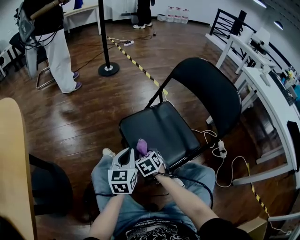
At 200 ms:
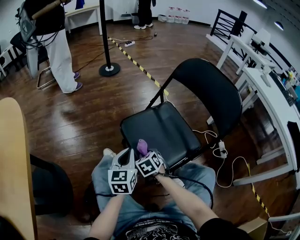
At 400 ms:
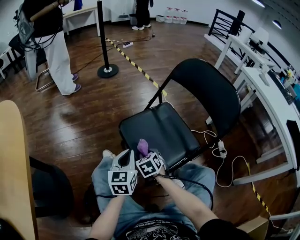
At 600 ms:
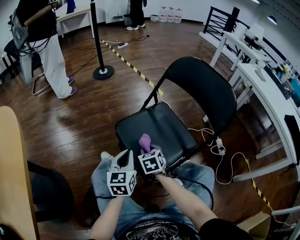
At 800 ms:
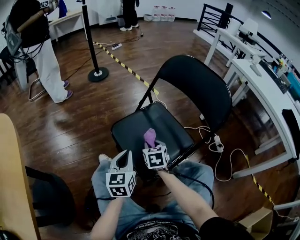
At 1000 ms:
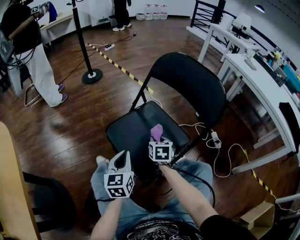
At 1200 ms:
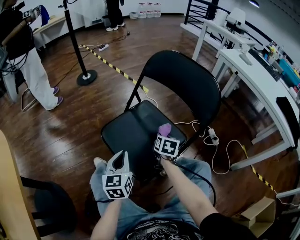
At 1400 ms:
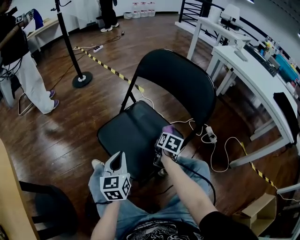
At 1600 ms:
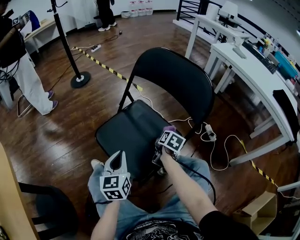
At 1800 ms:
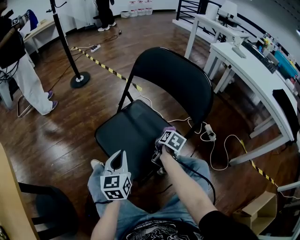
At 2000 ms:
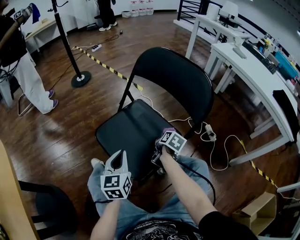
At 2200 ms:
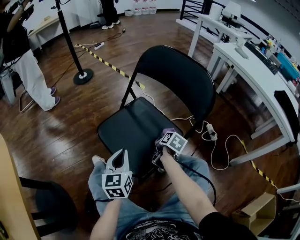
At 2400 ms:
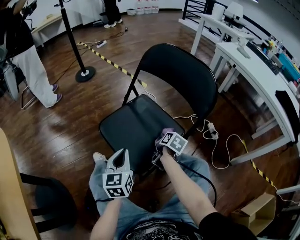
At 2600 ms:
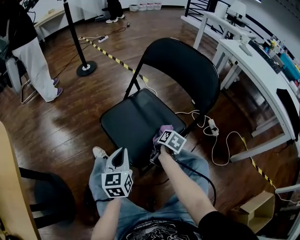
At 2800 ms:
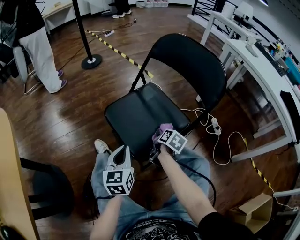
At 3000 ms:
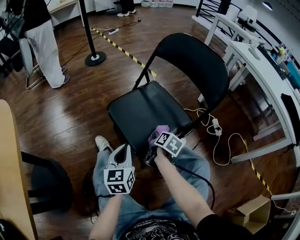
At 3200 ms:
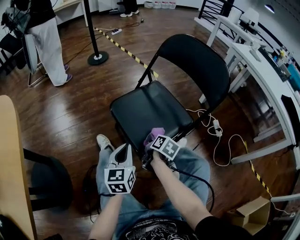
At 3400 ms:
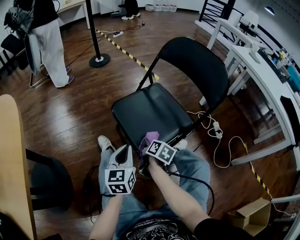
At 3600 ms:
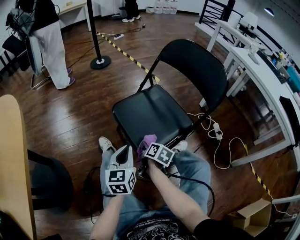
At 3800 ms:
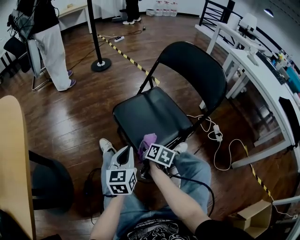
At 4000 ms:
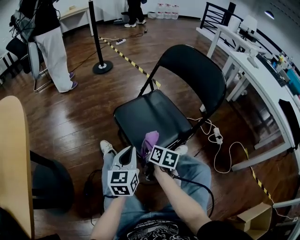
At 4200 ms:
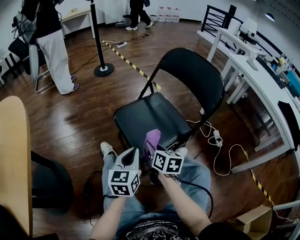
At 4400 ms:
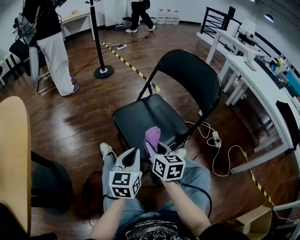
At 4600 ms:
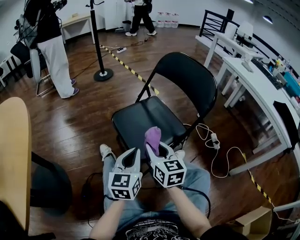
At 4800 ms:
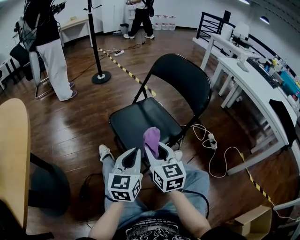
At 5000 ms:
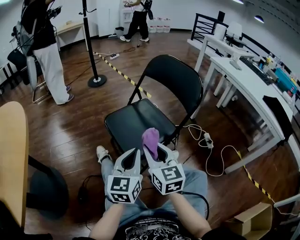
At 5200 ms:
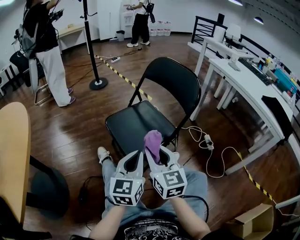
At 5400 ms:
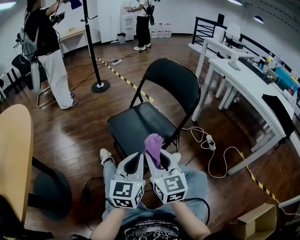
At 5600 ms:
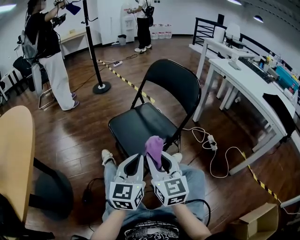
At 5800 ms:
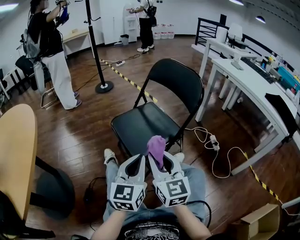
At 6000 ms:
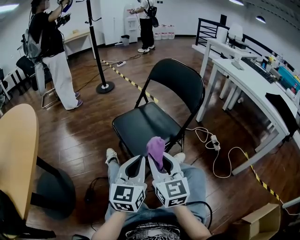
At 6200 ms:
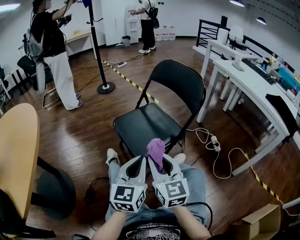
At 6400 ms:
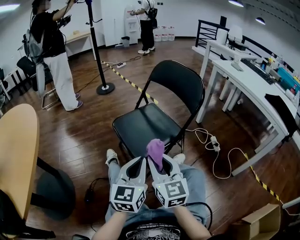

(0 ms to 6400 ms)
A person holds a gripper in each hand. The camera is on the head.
0 ms - 1600 ms: The left gripper heads to the right, covering some 10 cm; the right gripper moves to the right, about 25 cm, and twists approximately 70 degrees clockwise, seen from behind.
1600 ms - 3200 ms: The right gripper travels to the left and backward by some 20 cm. The left gripper travels backward by roughly 10 cm.
3200 ms - 4800 ms: The left gripper moves upward, to the right and backward, roughly 15 cm. Meanwhile the right gripper heads upward and backward, covering roughly 25 cm, and twists roughly 50 degrees counterclockwise, seen from behind.
4800 ms - 6400 ms: The grippers both shift backward by roughly 10 cm.

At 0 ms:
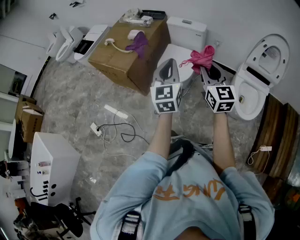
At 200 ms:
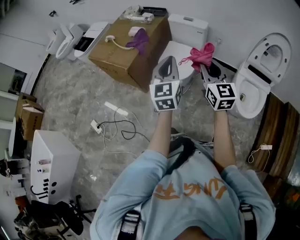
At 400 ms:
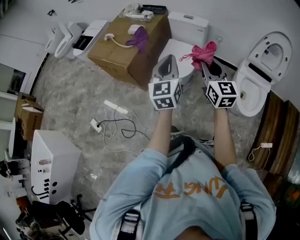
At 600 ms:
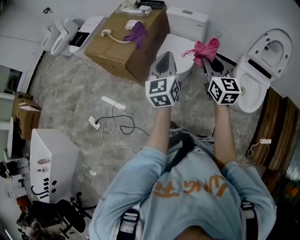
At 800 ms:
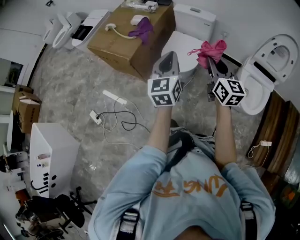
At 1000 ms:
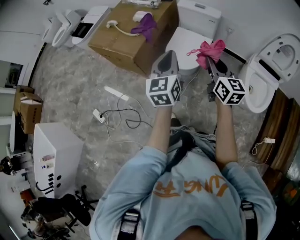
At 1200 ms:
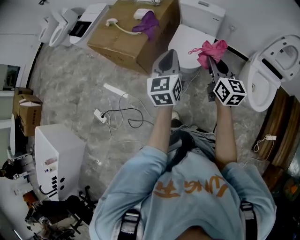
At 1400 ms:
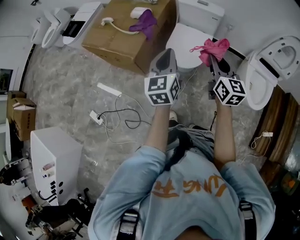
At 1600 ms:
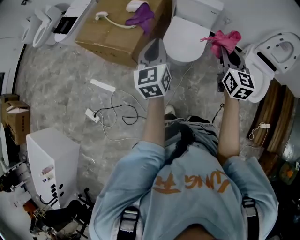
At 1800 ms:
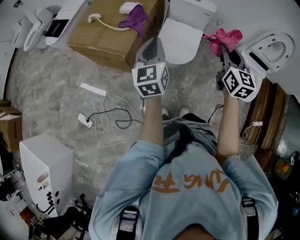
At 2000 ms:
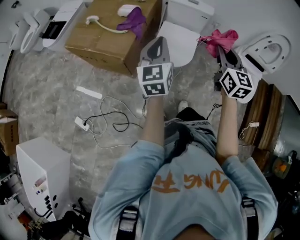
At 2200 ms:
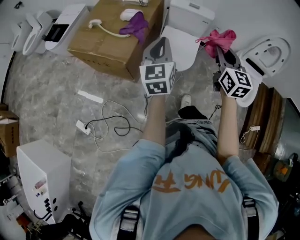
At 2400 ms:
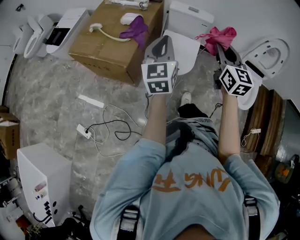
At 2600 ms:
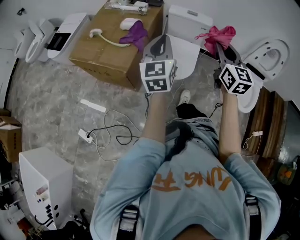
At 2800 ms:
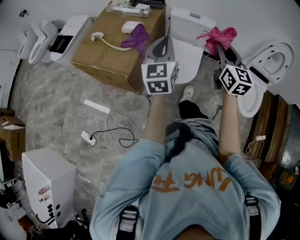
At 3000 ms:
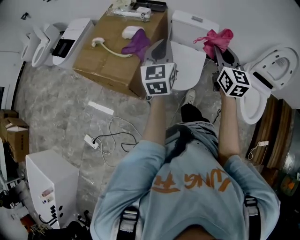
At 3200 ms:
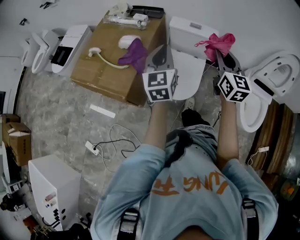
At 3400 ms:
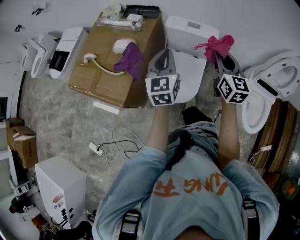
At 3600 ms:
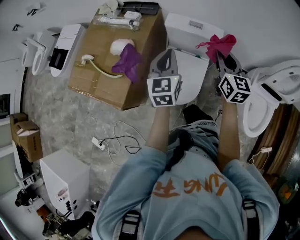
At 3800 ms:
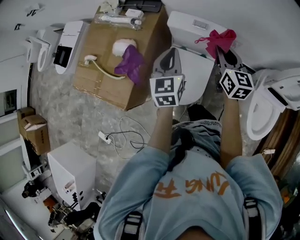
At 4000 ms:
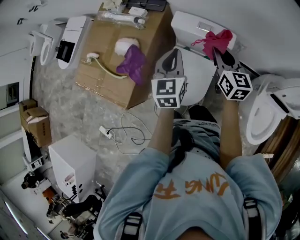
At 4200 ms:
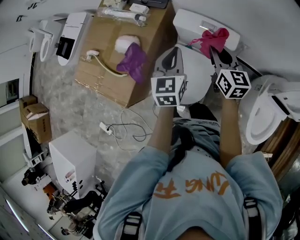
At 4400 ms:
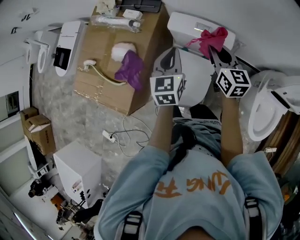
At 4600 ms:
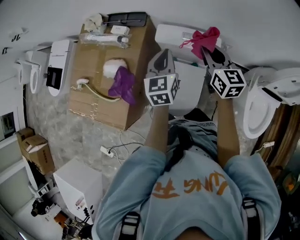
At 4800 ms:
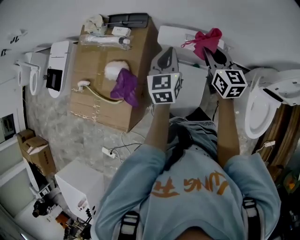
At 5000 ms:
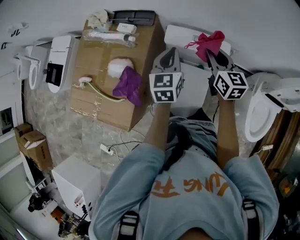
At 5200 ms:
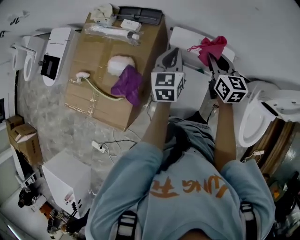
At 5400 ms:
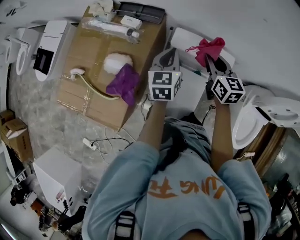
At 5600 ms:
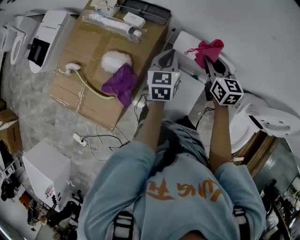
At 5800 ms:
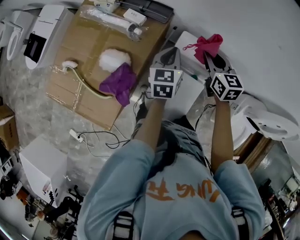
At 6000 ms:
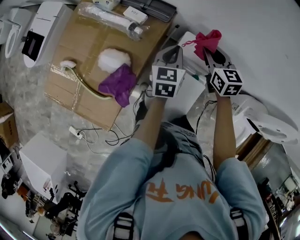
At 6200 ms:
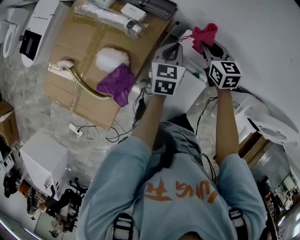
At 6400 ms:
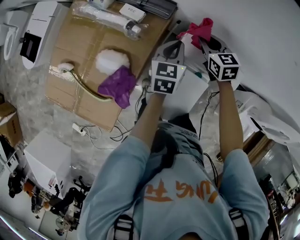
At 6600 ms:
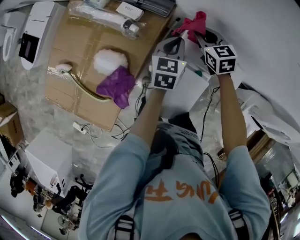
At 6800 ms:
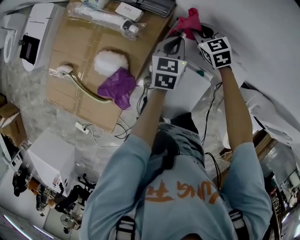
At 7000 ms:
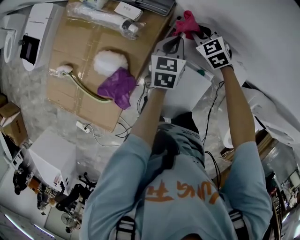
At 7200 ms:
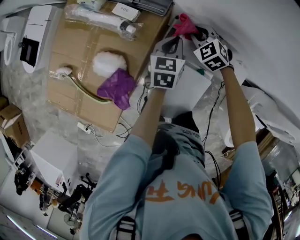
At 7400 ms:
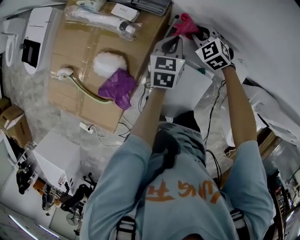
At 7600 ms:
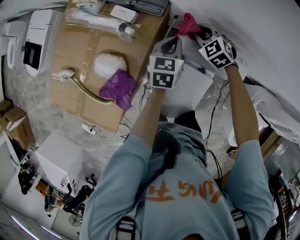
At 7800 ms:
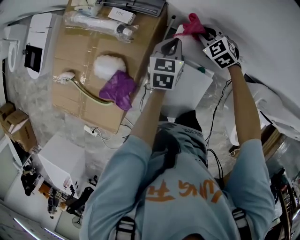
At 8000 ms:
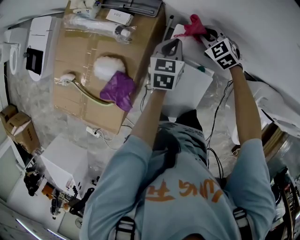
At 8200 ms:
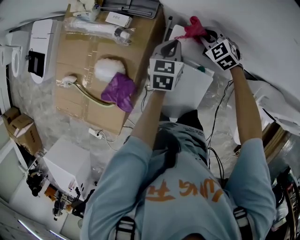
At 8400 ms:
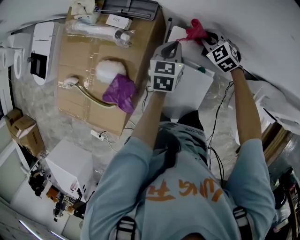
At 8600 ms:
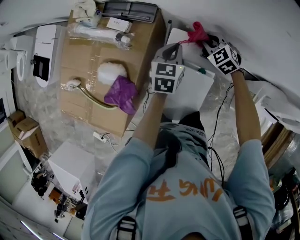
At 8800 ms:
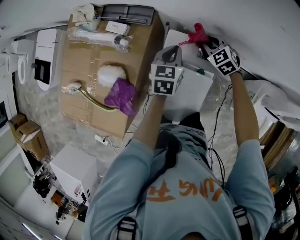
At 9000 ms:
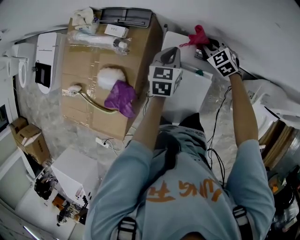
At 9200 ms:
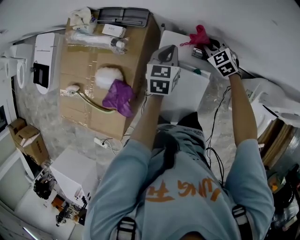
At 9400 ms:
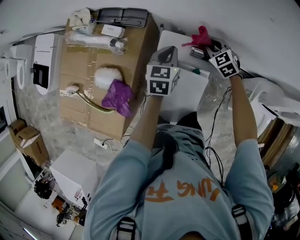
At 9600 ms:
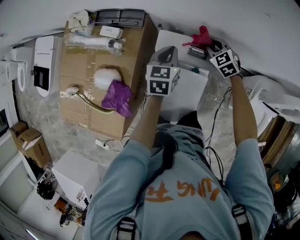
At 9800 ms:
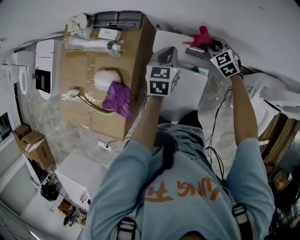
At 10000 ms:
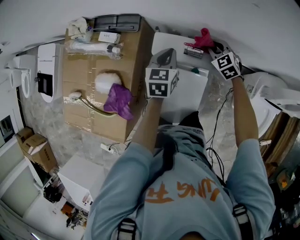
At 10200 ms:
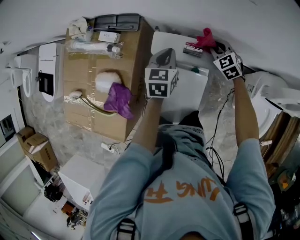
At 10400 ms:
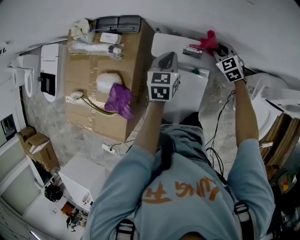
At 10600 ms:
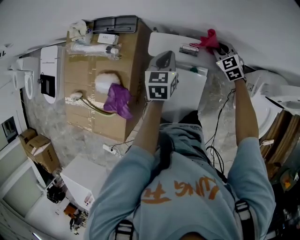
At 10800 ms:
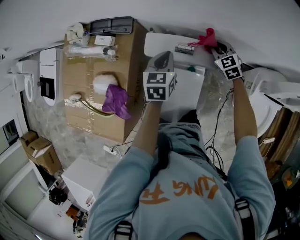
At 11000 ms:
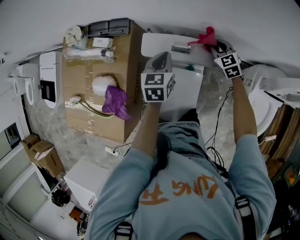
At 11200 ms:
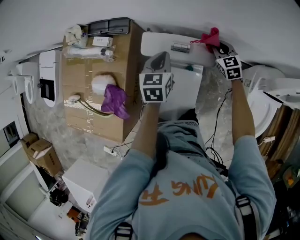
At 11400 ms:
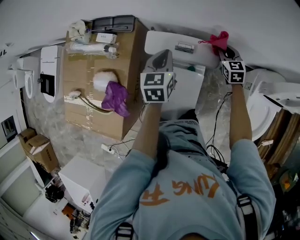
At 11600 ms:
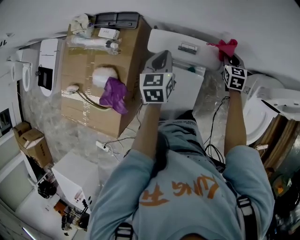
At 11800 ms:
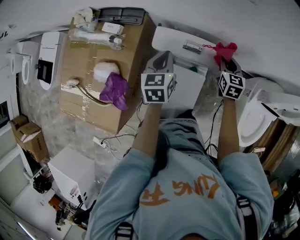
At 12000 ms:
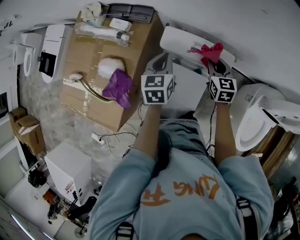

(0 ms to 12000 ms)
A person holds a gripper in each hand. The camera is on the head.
0 ms - 1600 ms: The right gripper travels forward and to the left by about 15 cm. Meanwhile the left gripper travels to the left and forward by roughly 25 cm.
1600 ms - 3000 ms: The grippers both shift forward by some 15 cm.
3000 ms - 4400 ms: The left gripper is displaced forward, to the right and downward by some 35 cm; the right gripper is displaced forward and downward by roughly 35 cm, and rotates some 20 degrees.
4400 ms - 6000 ms: The right gripper is displaced forward and to the left by roughly 20 cm, and rotates about 20 degrees; the left gripper moves forward and downward, roughly 20 cm.
6000 ms - 7600 ms: The left gripper goes approximately 5 cm downward, while the right gripper shifts about 15 cm downward and forward, and swivels roughly 40 degrees.
7600 ms - 9000 ms: The left gripper moves to the right, some 5 cm, while the right gripper travels to the right by approximately 10 cm.
9000 ms - 10400 ms: The right gripper travels to the right by some 10 cm. The left gripper ends up roughly 5 cm from where it was.
10400 ms - 12000 ms: The left gripper moves to the left, about 5 cm. Meanwhile the right gripper moves backward, roughly 5 cm, travels to the right and back again, some 10 cm each way, and rotates approximately 30 degrees.

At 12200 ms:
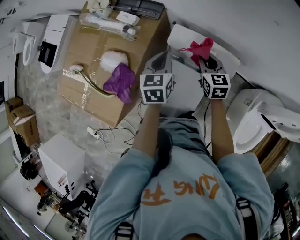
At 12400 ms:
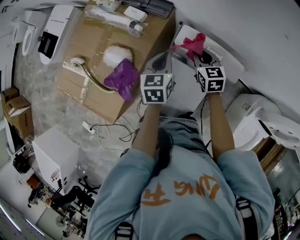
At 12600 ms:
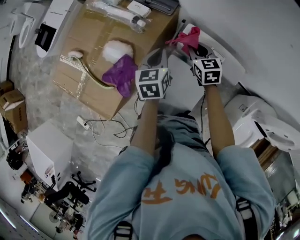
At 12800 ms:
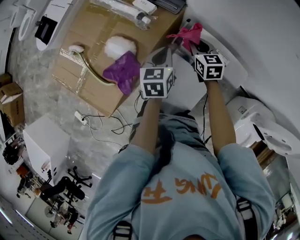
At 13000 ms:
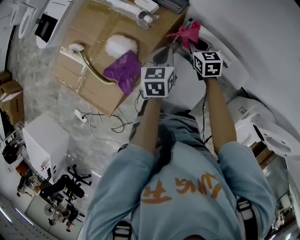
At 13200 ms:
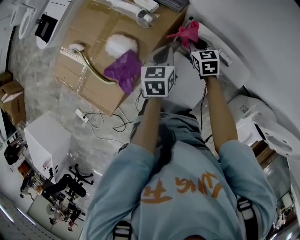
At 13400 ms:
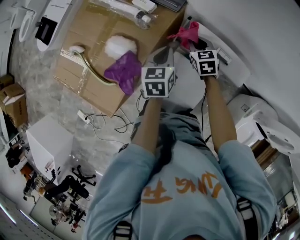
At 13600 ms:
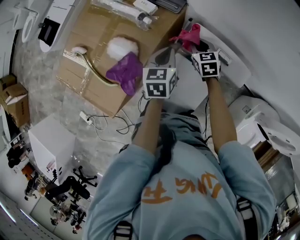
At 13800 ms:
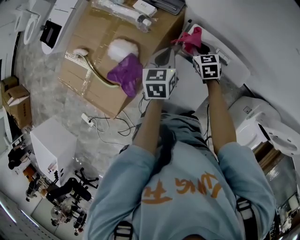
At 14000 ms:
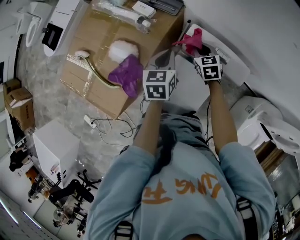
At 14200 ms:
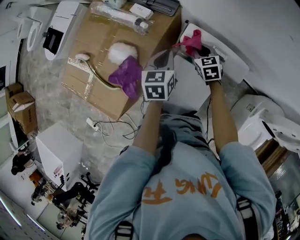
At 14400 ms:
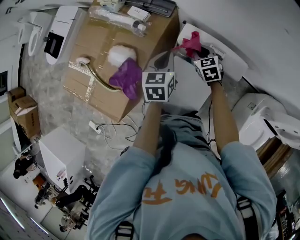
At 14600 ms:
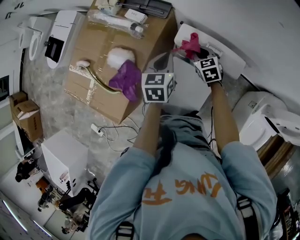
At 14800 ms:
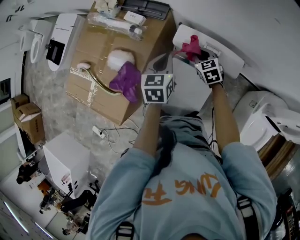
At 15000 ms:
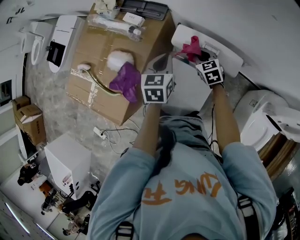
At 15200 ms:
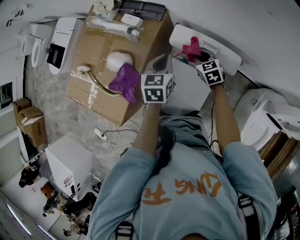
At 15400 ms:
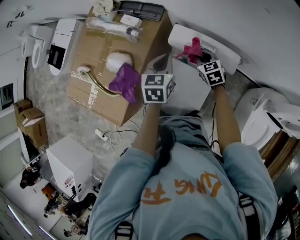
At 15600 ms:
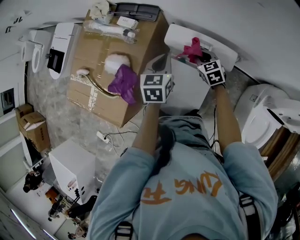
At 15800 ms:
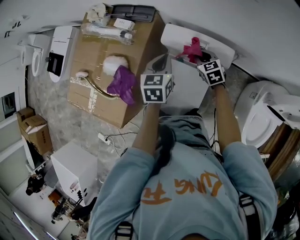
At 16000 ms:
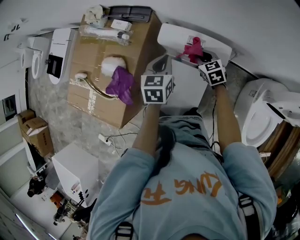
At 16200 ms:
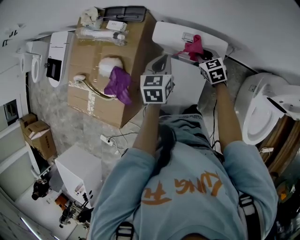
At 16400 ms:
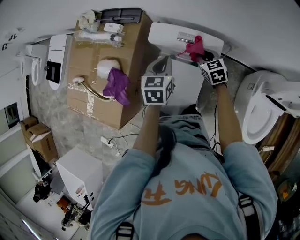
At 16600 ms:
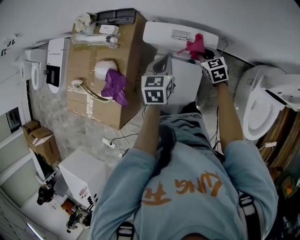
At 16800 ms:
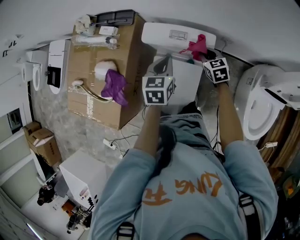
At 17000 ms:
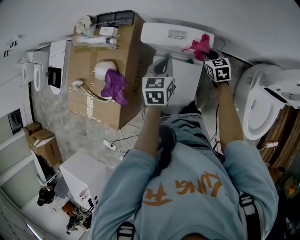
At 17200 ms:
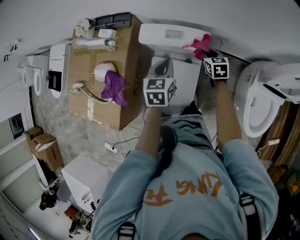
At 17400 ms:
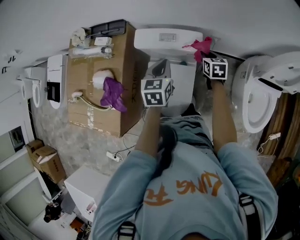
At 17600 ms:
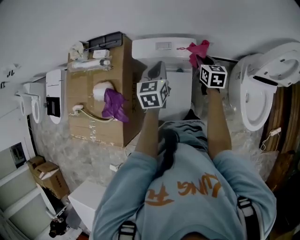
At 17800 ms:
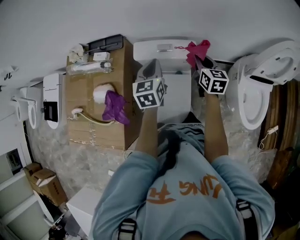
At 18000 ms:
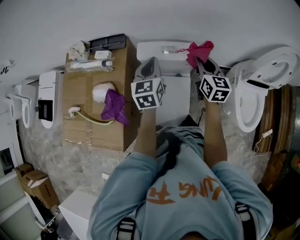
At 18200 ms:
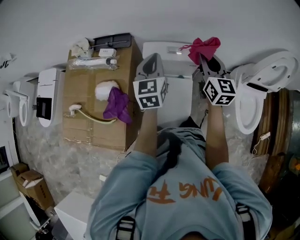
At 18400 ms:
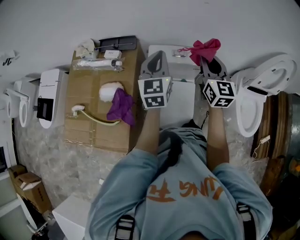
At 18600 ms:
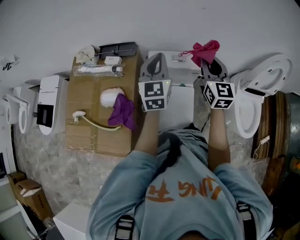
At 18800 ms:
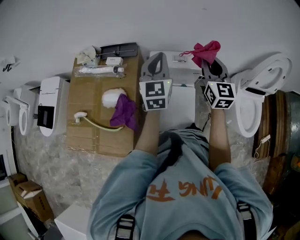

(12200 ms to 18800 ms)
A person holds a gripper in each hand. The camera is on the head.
12200 ms - 13800 ms: The right gripper heads to the left, forward and downward, covering roughly 15 cm; the left gripper travels to the left by about 5 cm.
13800 ms - 15400 ms: The left gripper is displaced to the right by roughly 5 cm. The right gripper goes roughly 10 cm to the right and backward.
15400 ms - 17200 ms: The two grippers go roughly 20 cm to the right and backward. The right gripper swivels about 30 degrees.
17200 ms - 18800 ms: The left gripper heads upward and to the left, covering some 25 cm, and tips its fingers upward by approximately 30 degrees. Meanwhile the right gripper moves upward, approximately 35 cm, and tilts its fingers approximately 40 degrees upward.
